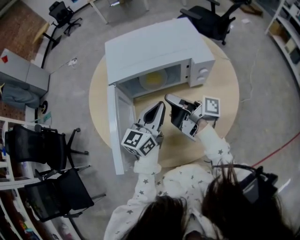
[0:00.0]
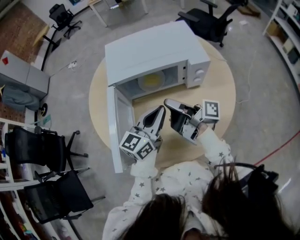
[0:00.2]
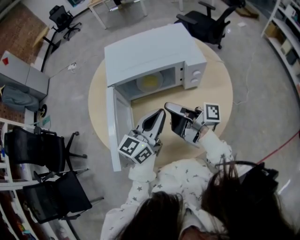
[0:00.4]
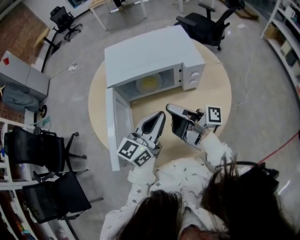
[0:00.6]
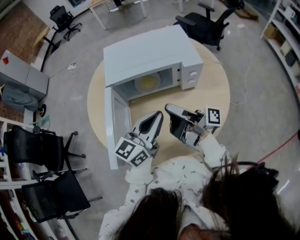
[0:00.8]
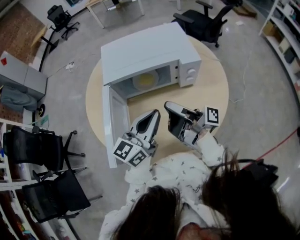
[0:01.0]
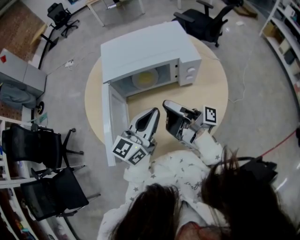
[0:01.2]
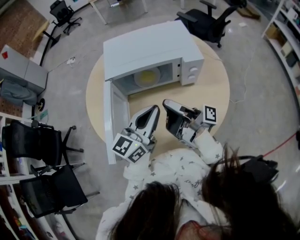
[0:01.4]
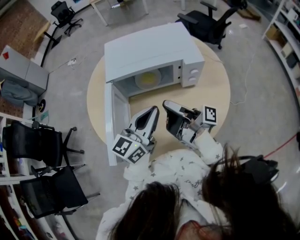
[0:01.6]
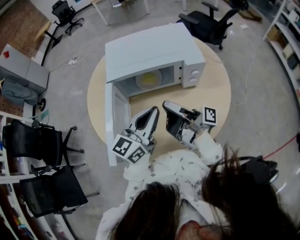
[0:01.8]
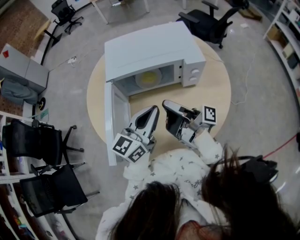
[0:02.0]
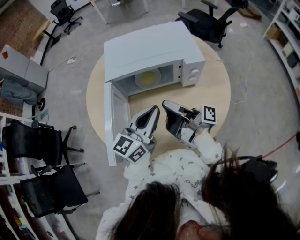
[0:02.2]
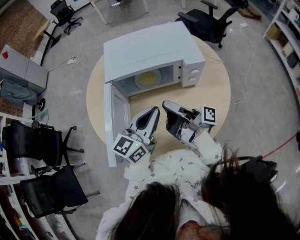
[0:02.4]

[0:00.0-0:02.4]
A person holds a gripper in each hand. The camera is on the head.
0:00.0 to 0:01.2: The left gripper shifts some 5 cm upward.

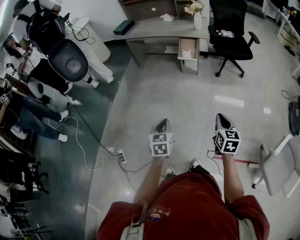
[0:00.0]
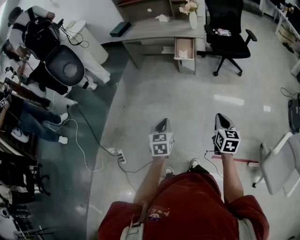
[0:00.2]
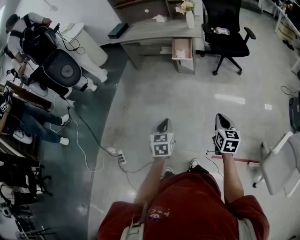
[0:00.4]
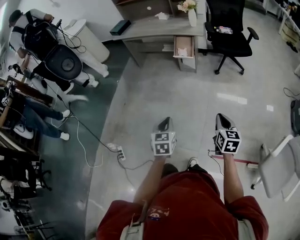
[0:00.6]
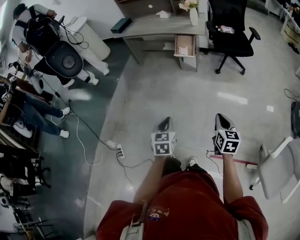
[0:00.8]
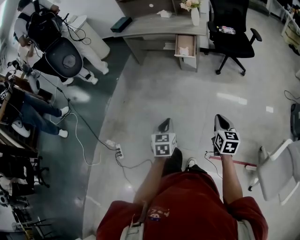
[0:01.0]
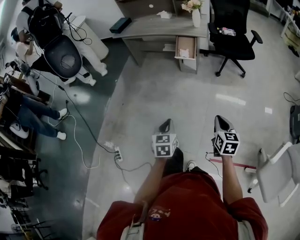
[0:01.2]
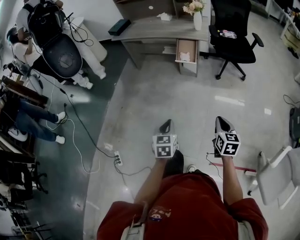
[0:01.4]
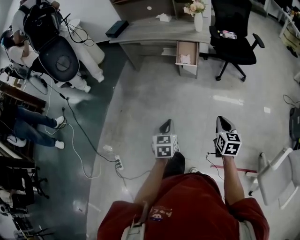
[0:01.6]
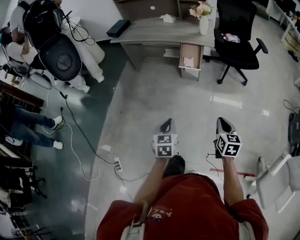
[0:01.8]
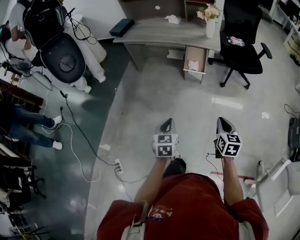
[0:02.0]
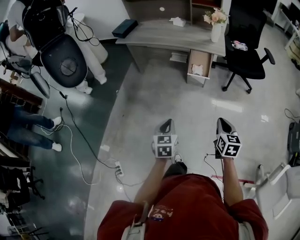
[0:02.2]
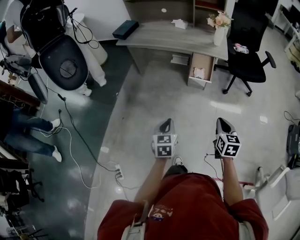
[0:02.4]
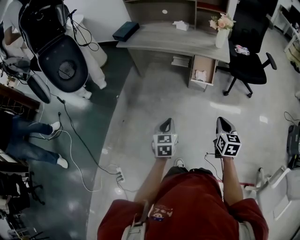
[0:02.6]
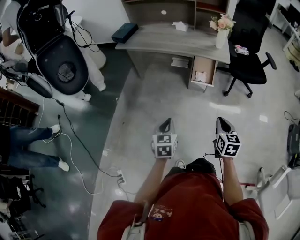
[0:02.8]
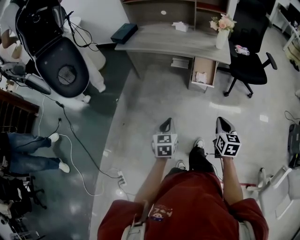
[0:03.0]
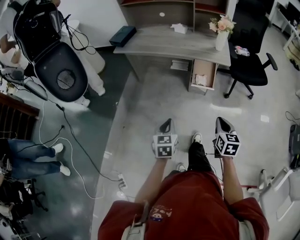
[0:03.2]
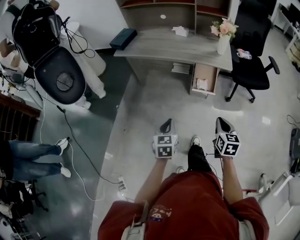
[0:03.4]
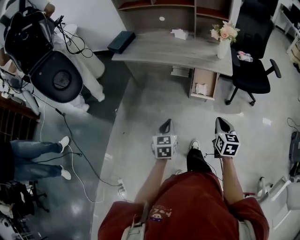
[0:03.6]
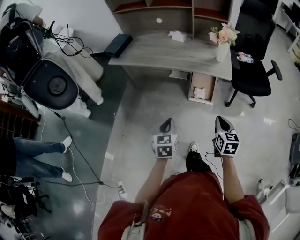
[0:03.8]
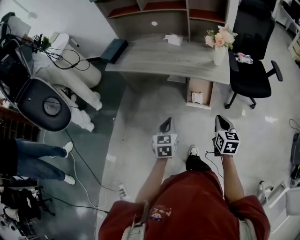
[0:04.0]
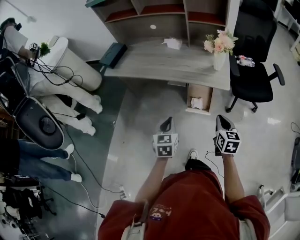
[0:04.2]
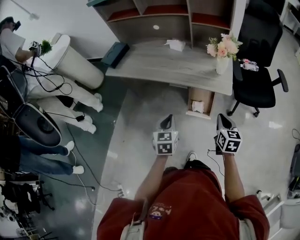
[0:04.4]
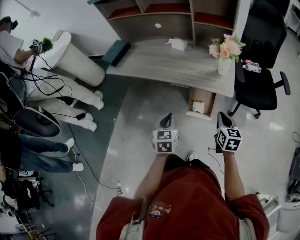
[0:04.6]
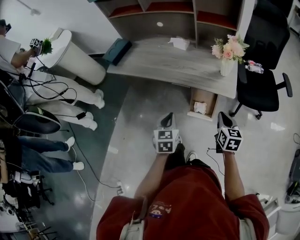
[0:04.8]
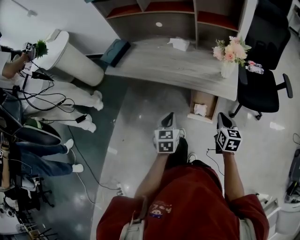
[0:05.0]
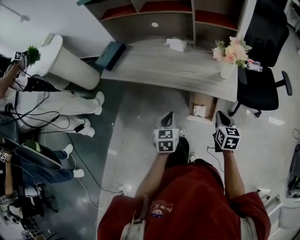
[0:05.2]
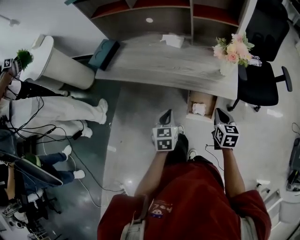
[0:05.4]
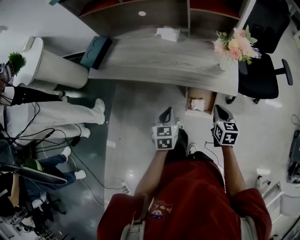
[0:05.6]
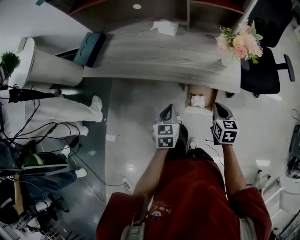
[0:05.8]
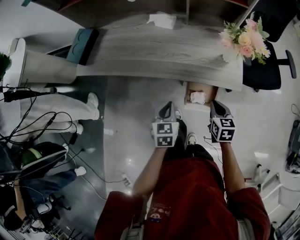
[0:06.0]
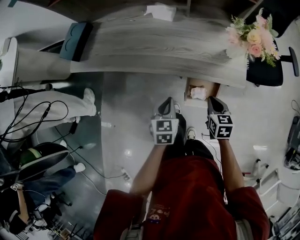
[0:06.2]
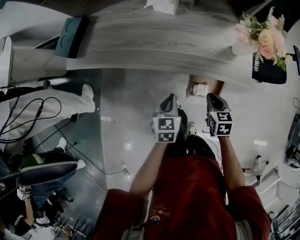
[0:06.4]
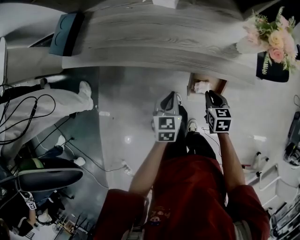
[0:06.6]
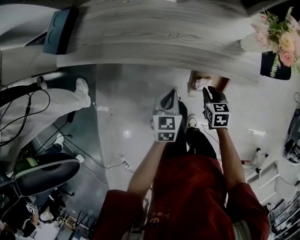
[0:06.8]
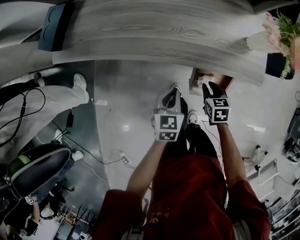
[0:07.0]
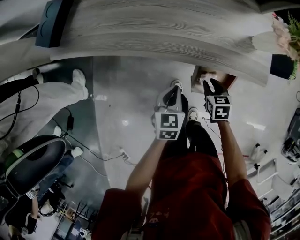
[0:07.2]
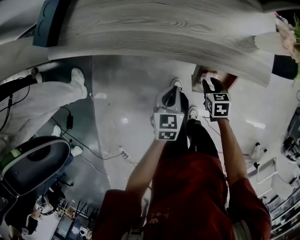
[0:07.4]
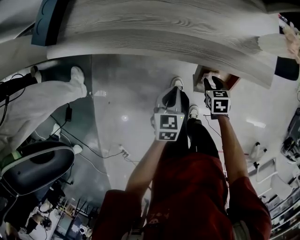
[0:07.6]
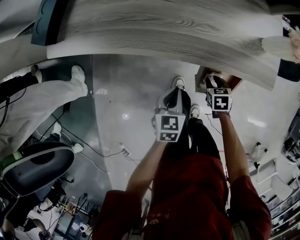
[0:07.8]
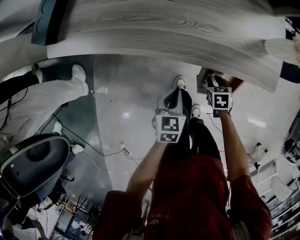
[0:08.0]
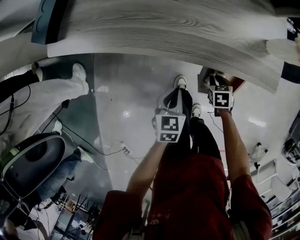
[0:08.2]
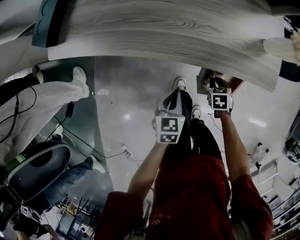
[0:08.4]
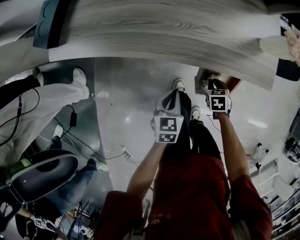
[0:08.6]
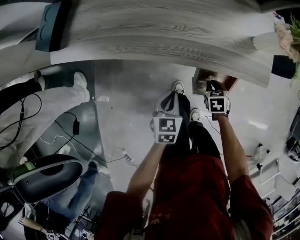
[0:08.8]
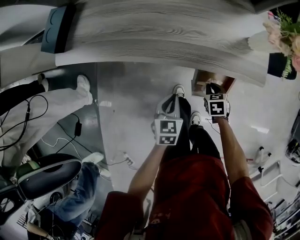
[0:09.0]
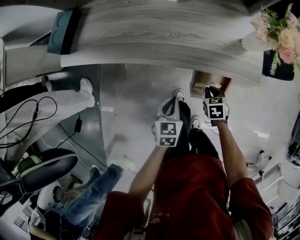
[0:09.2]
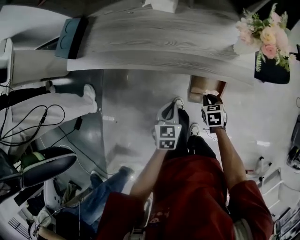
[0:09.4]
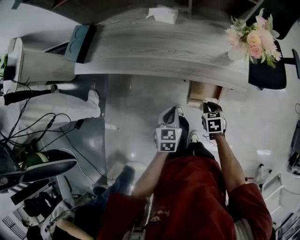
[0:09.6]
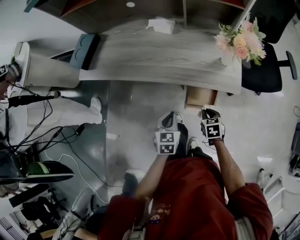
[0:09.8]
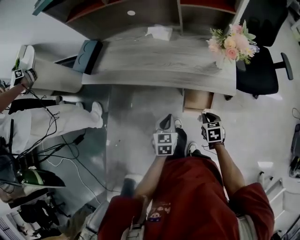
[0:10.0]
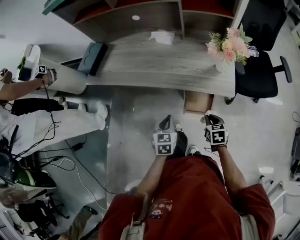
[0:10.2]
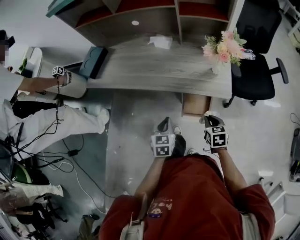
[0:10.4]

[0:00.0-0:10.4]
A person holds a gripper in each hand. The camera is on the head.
0:00.0 to 0:01.4: The left gripper moves forward and to the right, roughly 10 cm. Meanwhile the right gripper shifts some 10 cm forward.
0:01.4 to 0:03.0: The two grippers go roughly 30 cm forward and to the left.
0:03.0 to 0:04.4: The two grippers go roughly 30 cm forward.
0:04.4 to 0:06.0: The grippers both shift forward and downward by about 20 cm.
0:06.0 to 0:07.4: The left gripper moves downward, some 15 cm; the right gripper travels downward by roughly 20 cm, and opens up.
0:07.4 to 0:09.0: The right gripper closes its fingers.
0:09.0 to 0:10.4: The right gripper is displaced upward by about 20 cm, while the left gripper heads upward and backward, covering roughly 15 cm.

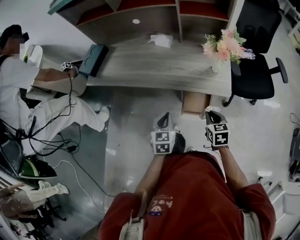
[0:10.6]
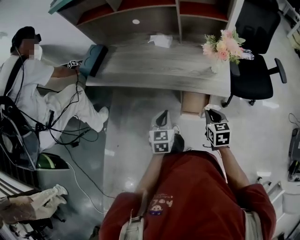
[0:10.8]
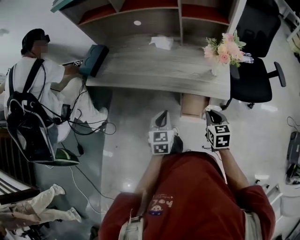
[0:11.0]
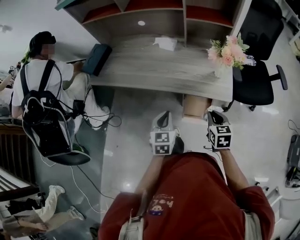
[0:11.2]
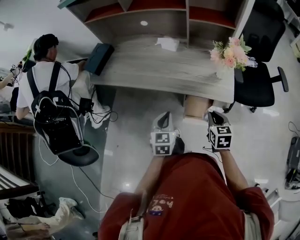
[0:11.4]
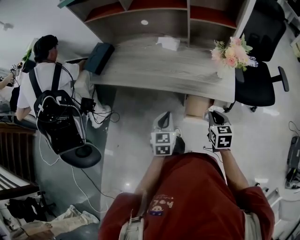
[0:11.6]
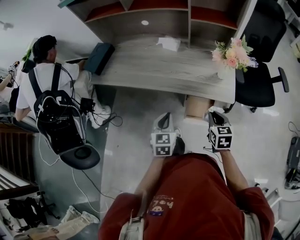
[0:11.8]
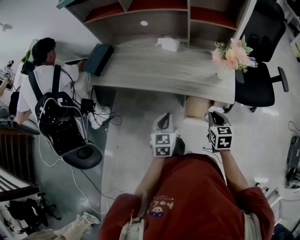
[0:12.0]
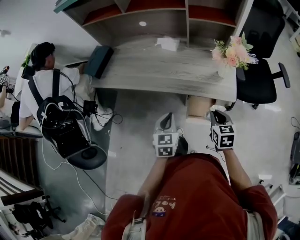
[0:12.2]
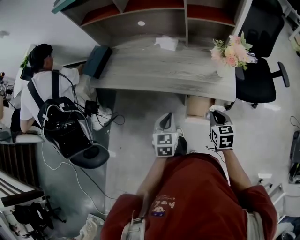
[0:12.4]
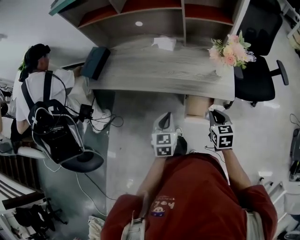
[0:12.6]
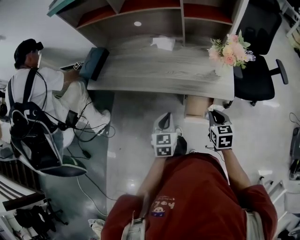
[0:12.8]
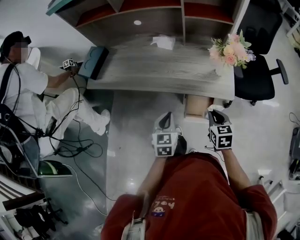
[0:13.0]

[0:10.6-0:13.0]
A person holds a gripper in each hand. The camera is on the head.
0:10.6 to 0:13.0: There are only small adjustments of the grippers.

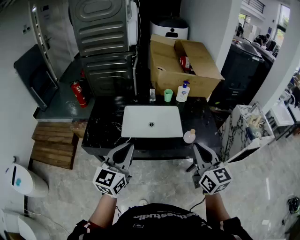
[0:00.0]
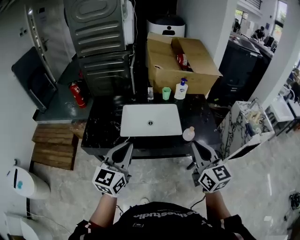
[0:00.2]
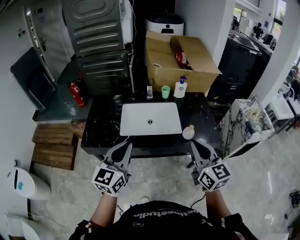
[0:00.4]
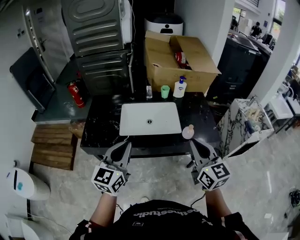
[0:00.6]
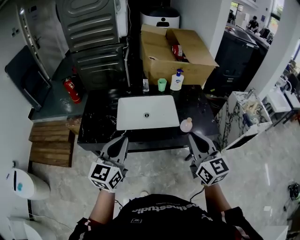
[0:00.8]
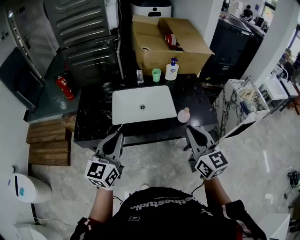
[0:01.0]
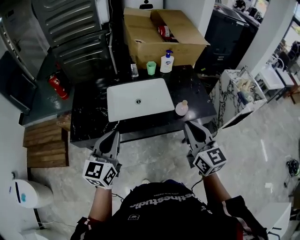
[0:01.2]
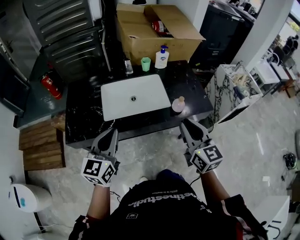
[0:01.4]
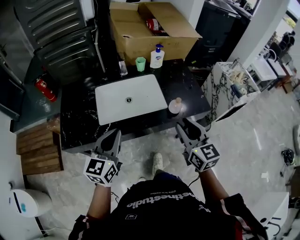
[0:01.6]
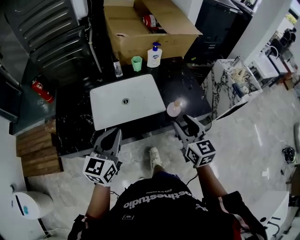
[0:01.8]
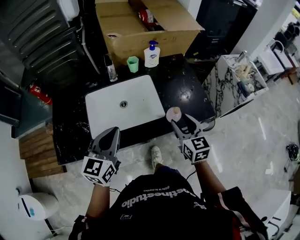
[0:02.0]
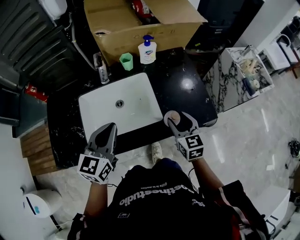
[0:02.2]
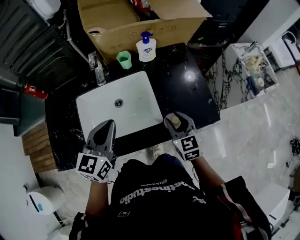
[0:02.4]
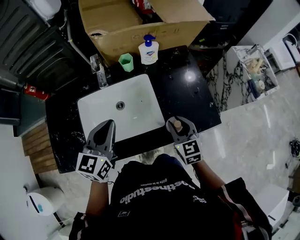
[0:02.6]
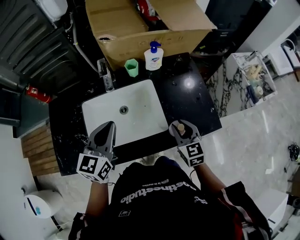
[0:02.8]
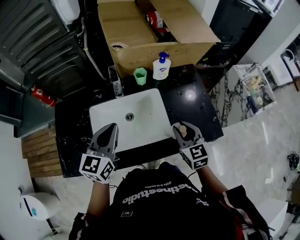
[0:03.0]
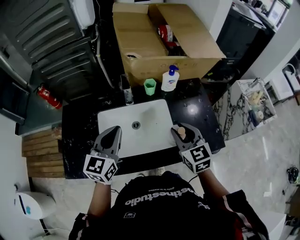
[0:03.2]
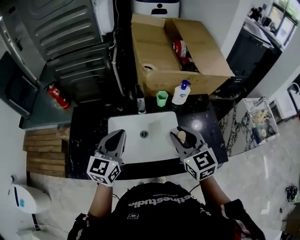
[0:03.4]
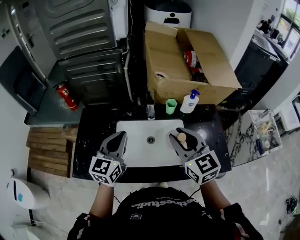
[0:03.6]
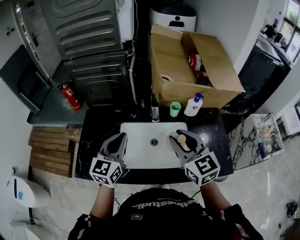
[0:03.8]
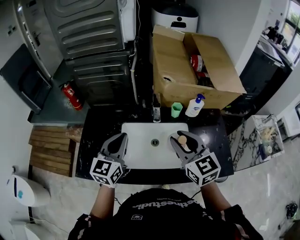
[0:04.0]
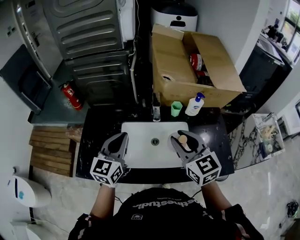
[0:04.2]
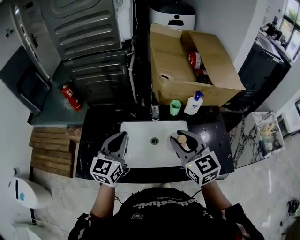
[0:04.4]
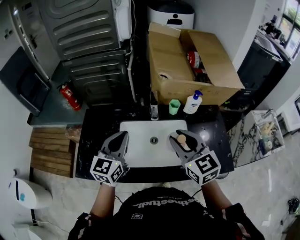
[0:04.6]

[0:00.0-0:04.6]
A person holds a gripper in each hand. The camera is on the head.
0:00.0 to 0:01.6: The left gripper moves downward and forward, about 10 cm, while the right gripper shifts some 10 cm downward, and opens its fingers.
0:01.6 to 0:03.0: The right gripper heads forward and downward, covering about 25 cm, and opens and closes again. The left gripper heads forward, covering approximately 25 cm.
0:03.0 to 0:04.6: The left gripper moves to the left, roughly 10 cm; the right gripper is displaced to the left and upward by approximately 25 cm, and swivels roughly 20 degrees.

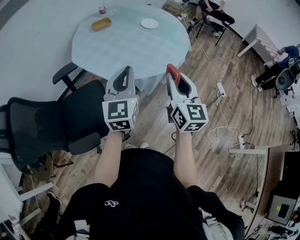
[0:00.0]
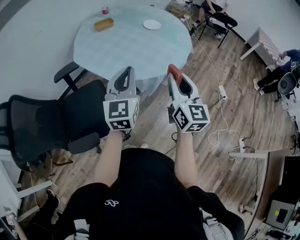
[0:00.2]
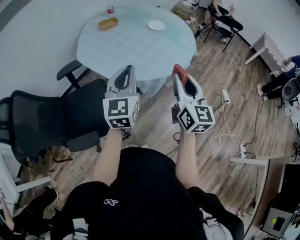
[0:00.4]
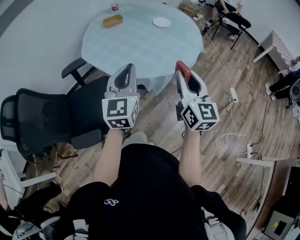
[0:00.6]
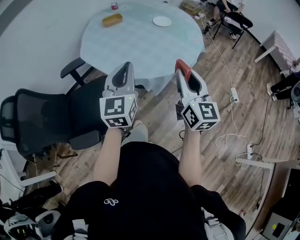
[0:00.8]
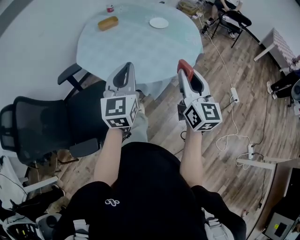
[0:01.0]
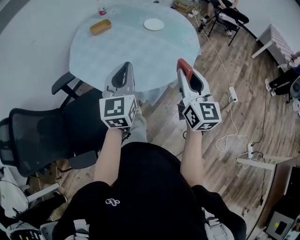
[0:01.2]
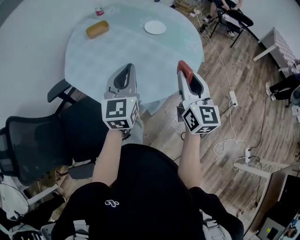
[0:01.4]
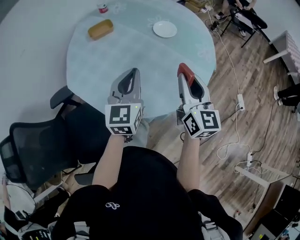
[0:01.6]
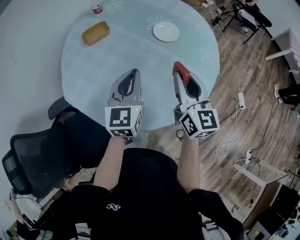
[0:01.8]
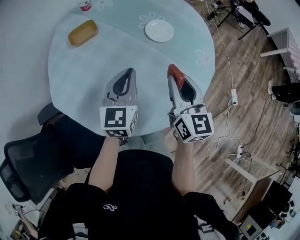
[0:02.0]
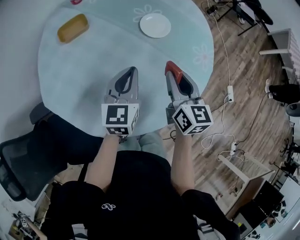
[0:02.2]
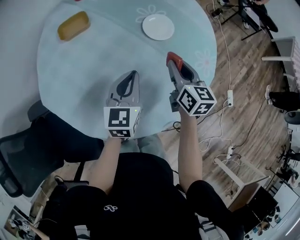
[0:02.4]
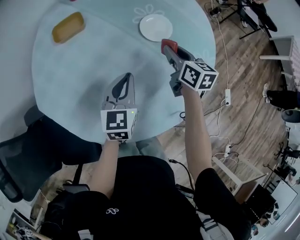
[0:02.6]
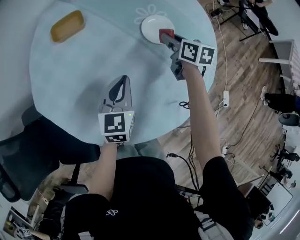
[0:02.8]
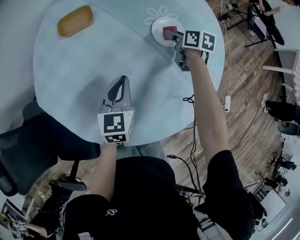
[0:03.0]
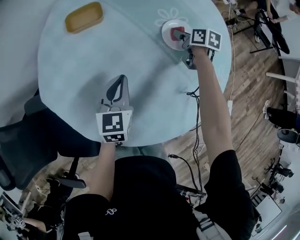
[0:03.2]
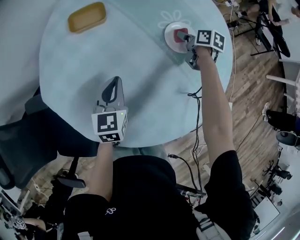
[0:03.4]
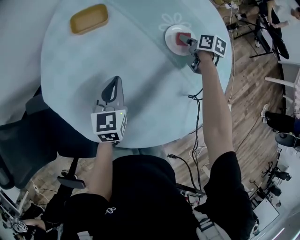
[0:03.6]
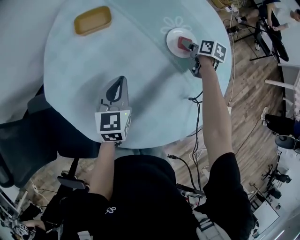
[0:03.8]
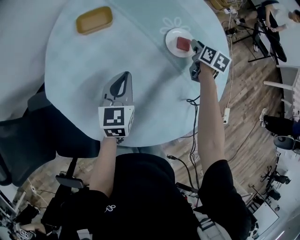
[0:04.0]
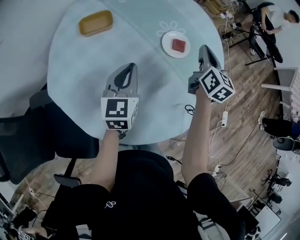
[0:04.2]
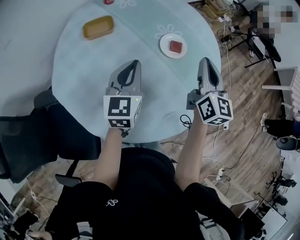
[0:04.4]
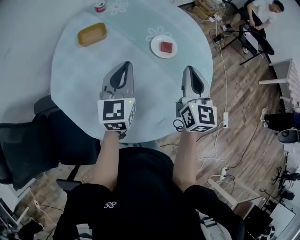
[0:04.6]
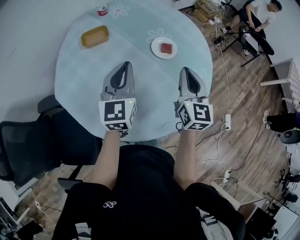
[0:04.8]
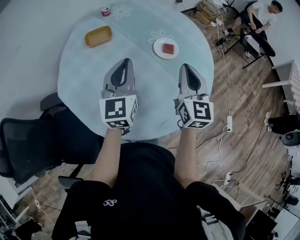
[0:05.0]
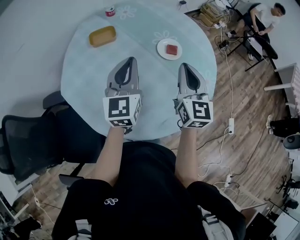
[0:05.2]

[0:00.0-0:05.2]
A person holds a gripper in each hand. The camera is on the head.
0:00.0 to 0:01.8: The two grippers travel together, forward, approximately 40 cm.
0:01.8 to 0:03.4: The left gripper travels downward and forward by some 20 cm, and changes its angle by approximately 20 degrees. Meanwhile the right gripper travels forward and downward by roughly 40 cm, and points its fingers approximately 40 degrees further downward.
0:03.4 to 0:05.2: The left gripper travels upward by approximately 20 cm, and turns by approximately 30 degrees, while the right gripper moves upward and backward, about 40 cm, angles its fingers upward, by about 40 degrees, and closes up.
